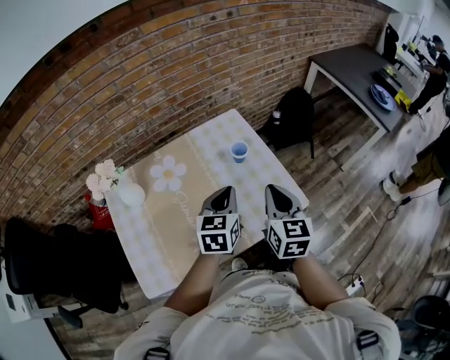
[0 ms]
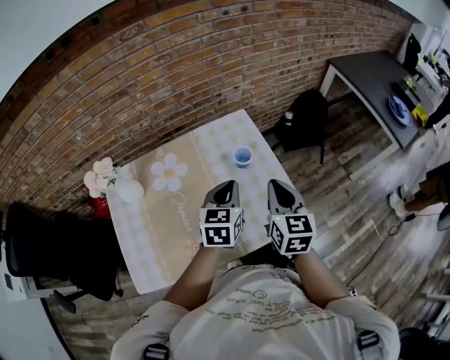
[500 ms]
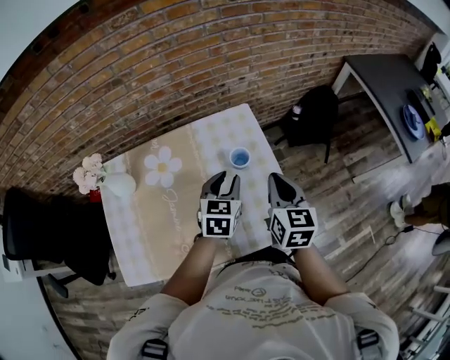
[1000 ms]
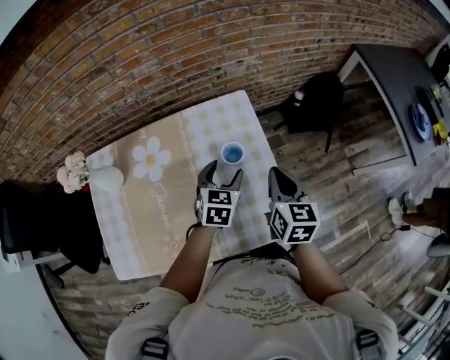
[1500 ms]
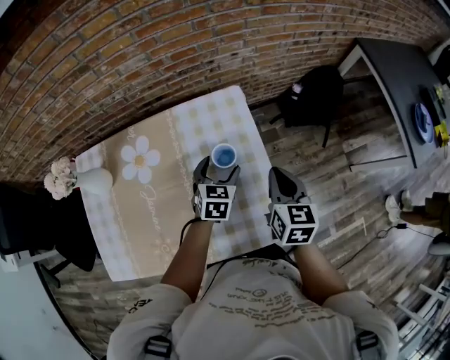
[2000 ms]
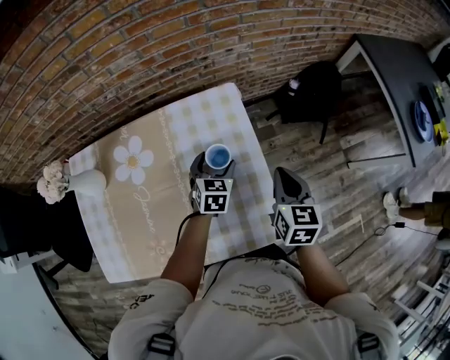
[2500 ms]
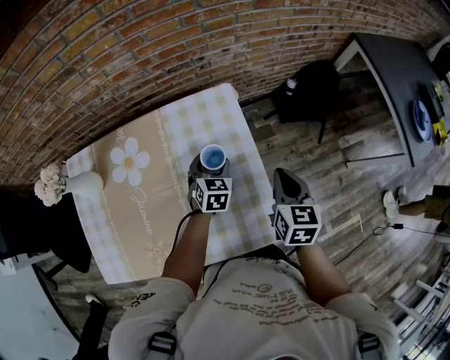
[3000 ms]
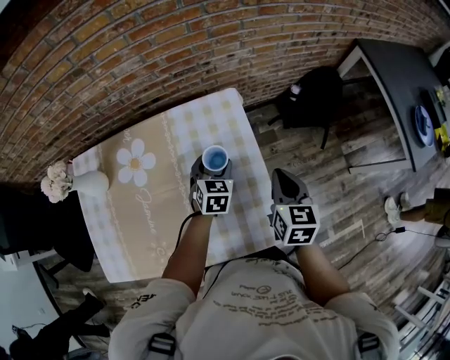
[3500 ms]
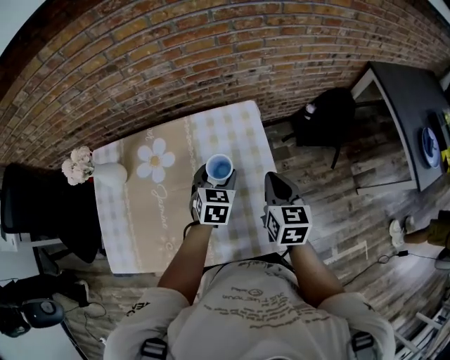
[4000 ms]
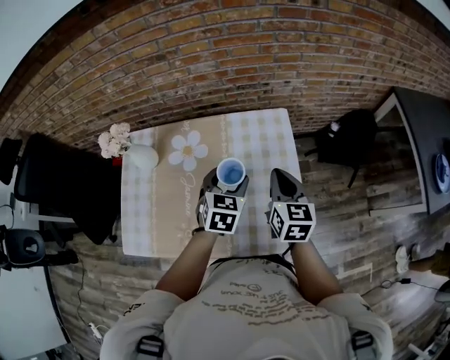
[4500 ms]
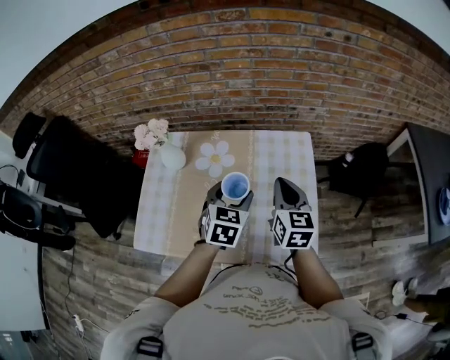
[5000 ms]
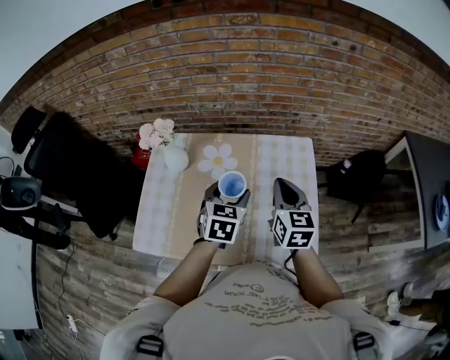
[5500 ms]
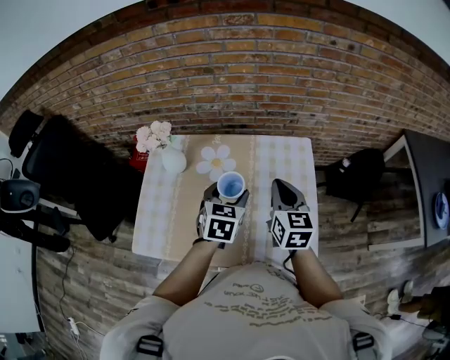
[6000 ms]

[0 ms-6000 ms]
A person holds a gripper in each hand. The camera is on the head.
0 ms to 2000 ms: The left gripper is displaced forward and downward by some 25 cm, and opens its fingers, while the right gripper travels forward, downward and to the right by approximately 25 cm.
2000 ms to 4000 ms: The left gripper ends up about 5 cm from where it was.
4000 ms to 6000 ms: The right gripper is displaced to the left and upward by some 20 cm; the left gripper goes roughly 20 cm to the left, upward and backward.

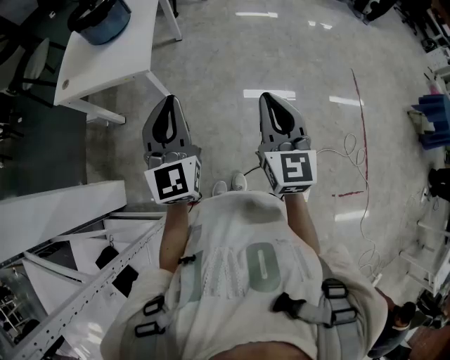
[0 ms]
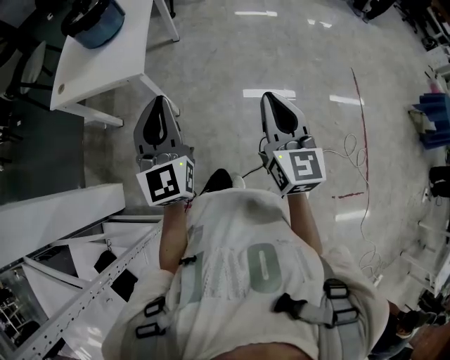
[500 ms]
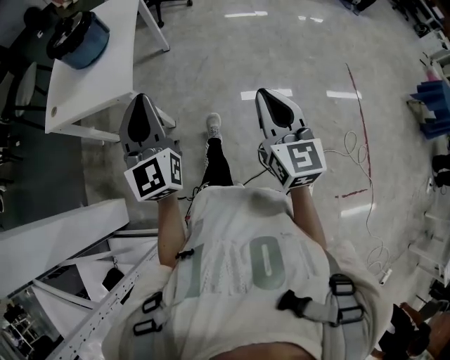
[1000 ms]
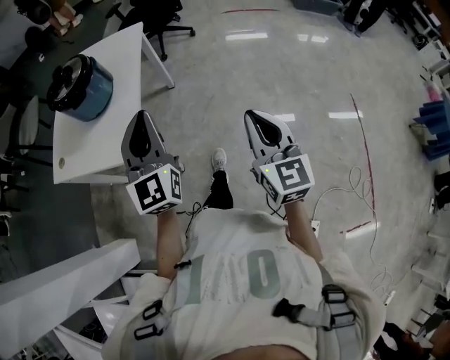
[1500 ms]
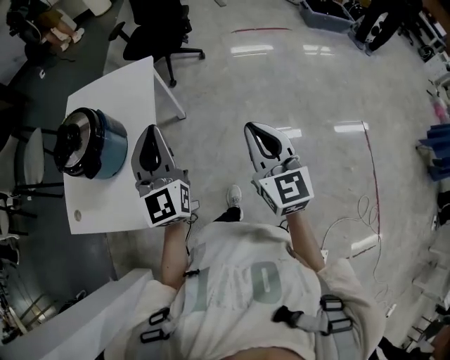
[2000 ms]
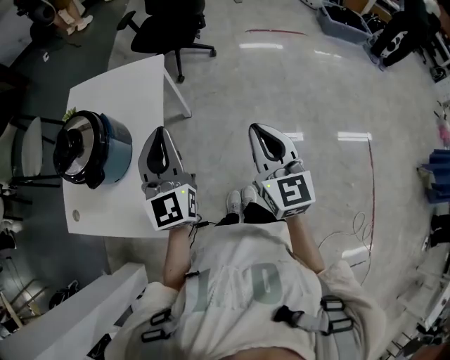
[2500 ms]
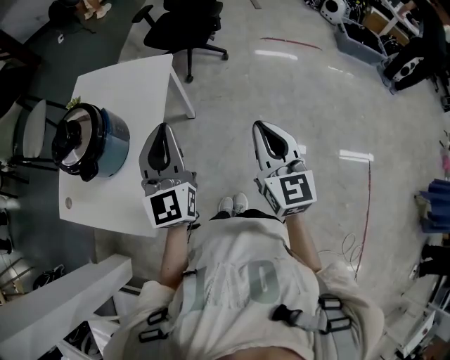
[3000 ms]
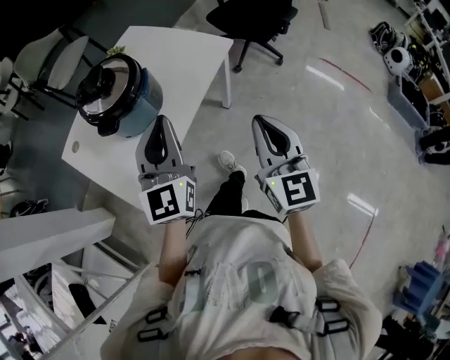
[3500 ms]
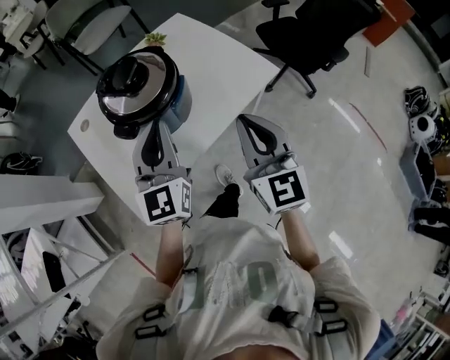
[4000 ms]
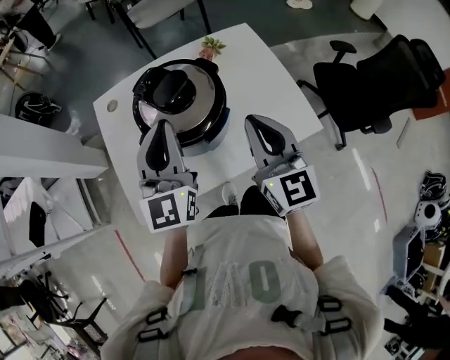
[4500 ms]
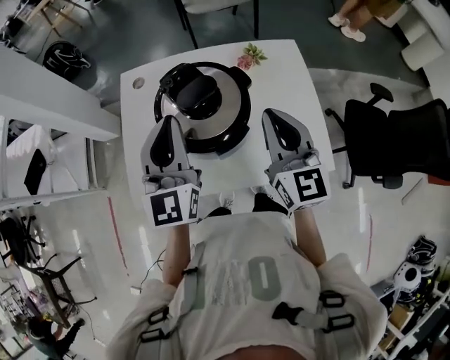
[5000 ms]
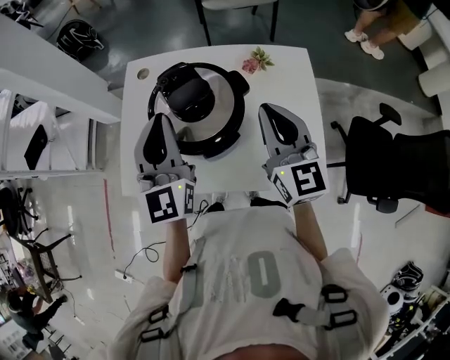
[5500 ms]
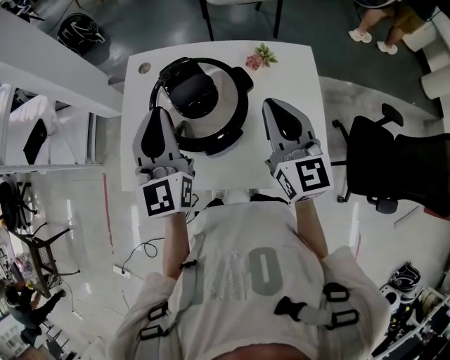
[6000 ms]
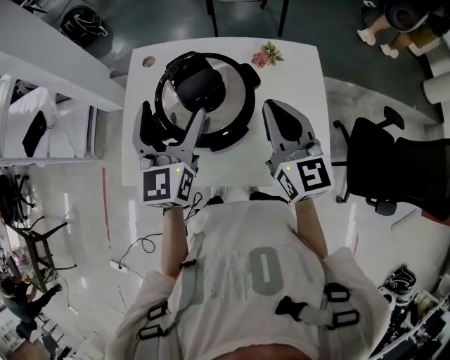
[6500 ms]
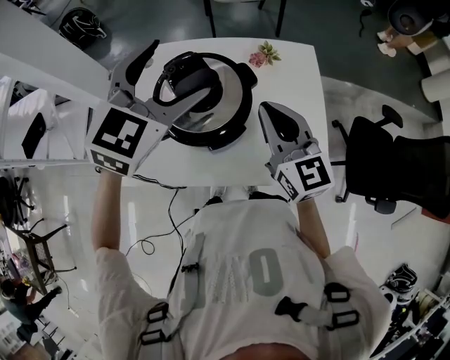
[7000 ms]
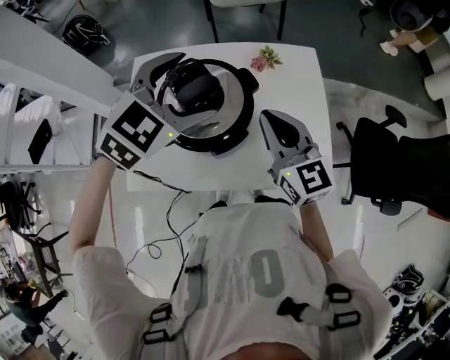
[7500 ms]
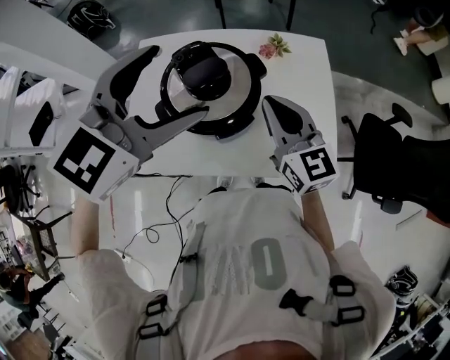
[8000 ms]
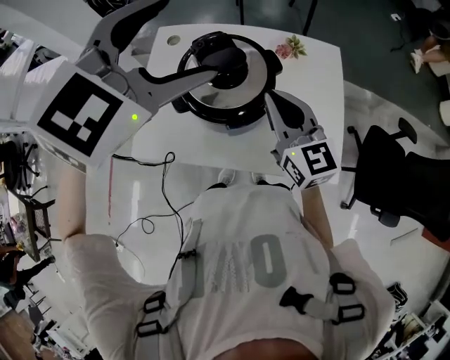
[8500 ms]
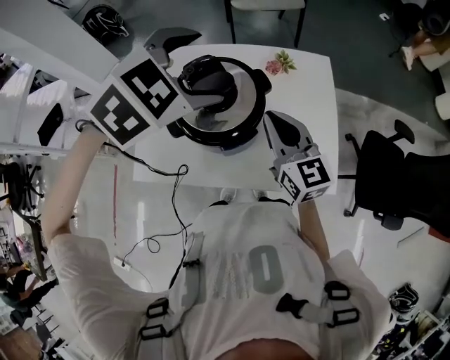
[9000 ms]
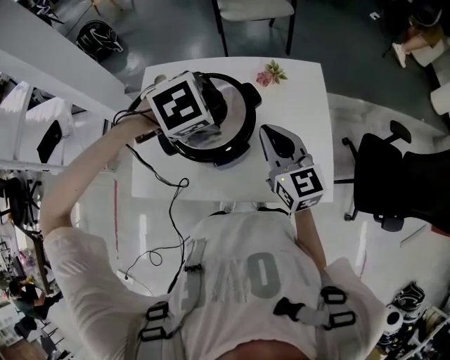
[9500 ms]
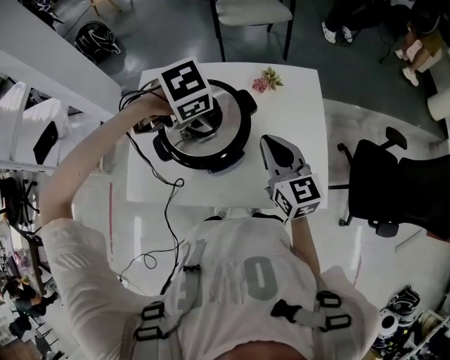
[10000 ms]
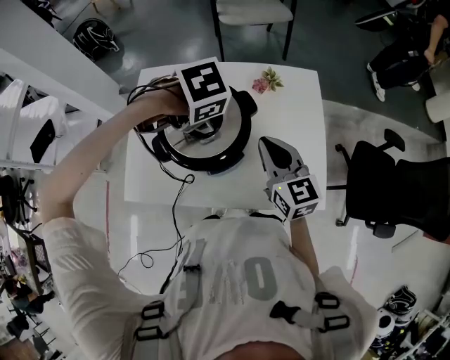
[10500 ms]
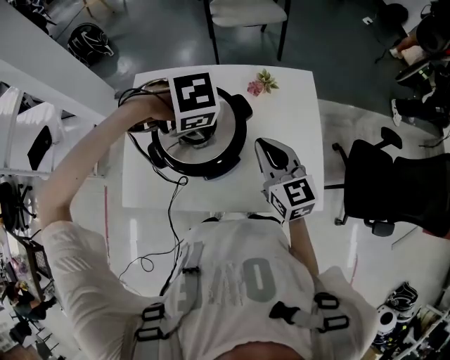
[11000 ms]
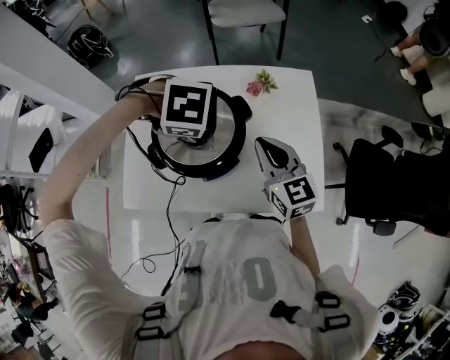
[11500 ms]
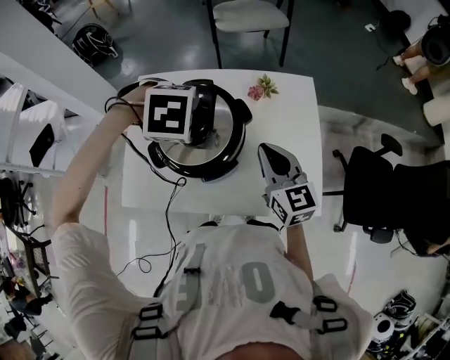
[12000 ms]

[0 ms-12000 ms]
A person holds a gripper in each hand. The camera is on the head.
0 ms to 2000 ms: Both grippers are carried forward, approximately 50 cm.
2000 ms to 4000 ms: The right gripper ends up about 35 cm from where it was, and changes its angle by some 50 degrees. The left gripper changes place by about 20 cm, and turns by about 50 degrees.
4000 ms to 6000 ms: The left gripper ends up some 15 cm from where it was, and swivels about 50 degrees. The right gripper moves roughly 30 cm, and turns by approximately 40 degrees.
6000 ms to 8000 ms: The left gripper moves up and down over some 10 cm, changing direction 2 times, turns by about 50 degrees, and opens up.
8000 ms to 10000 ms: The right gripper changes place by roughly 5 cm. The left gripper goes some 20 cm downward, and angles its fingers downward, by some 60 degrees.
10000 ms to 12000 ms: The left gripper changes its angle by about 30 degrees.

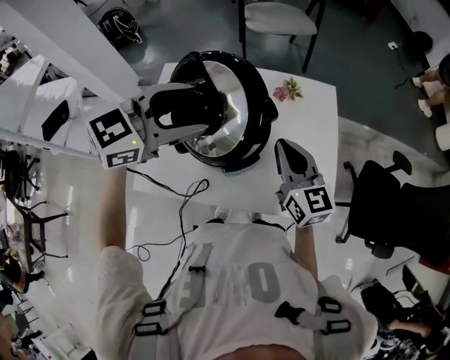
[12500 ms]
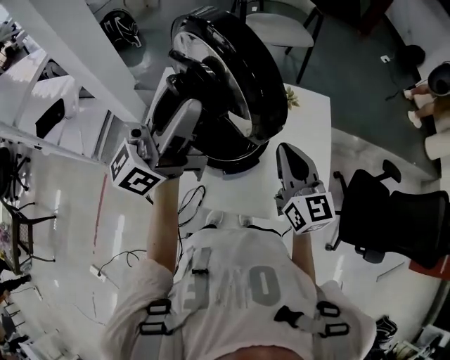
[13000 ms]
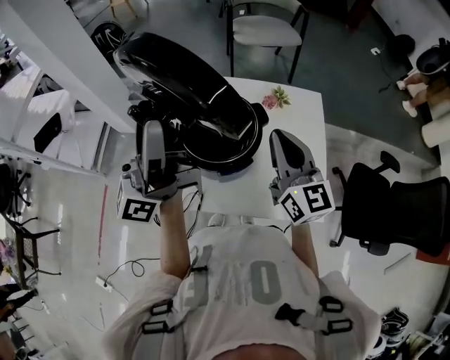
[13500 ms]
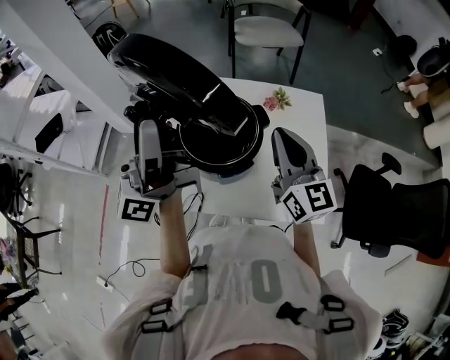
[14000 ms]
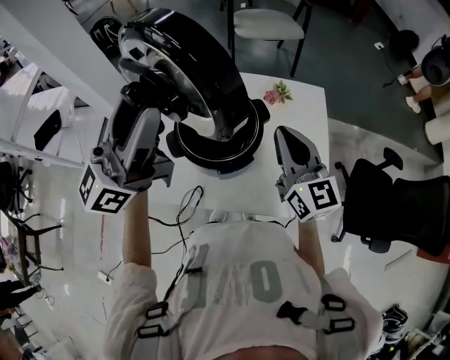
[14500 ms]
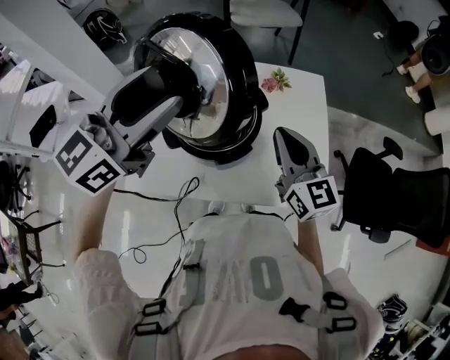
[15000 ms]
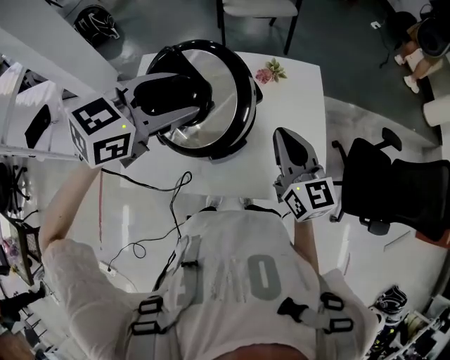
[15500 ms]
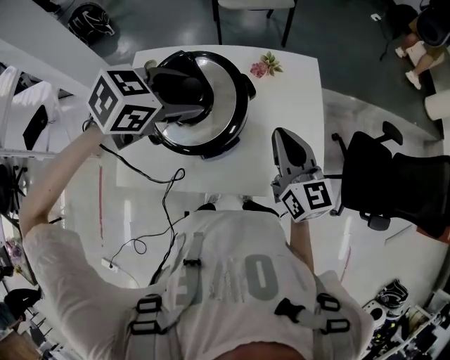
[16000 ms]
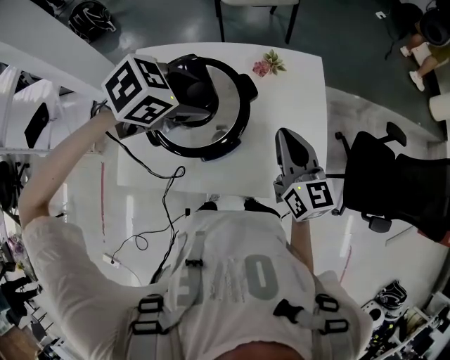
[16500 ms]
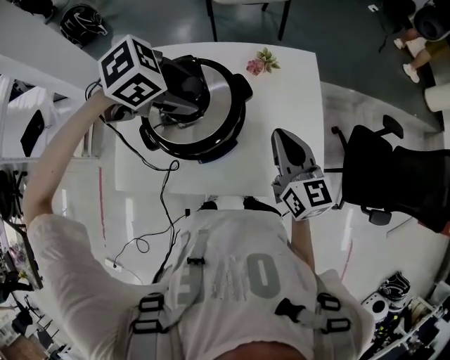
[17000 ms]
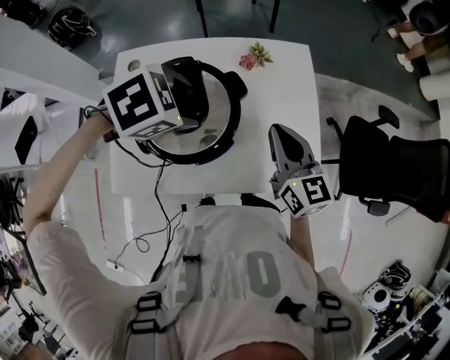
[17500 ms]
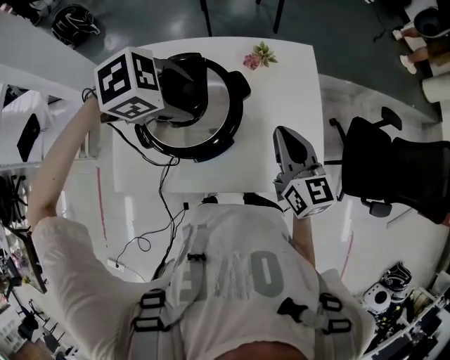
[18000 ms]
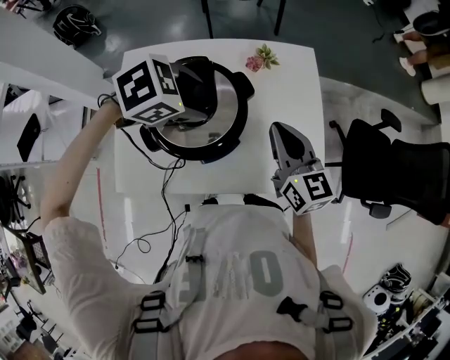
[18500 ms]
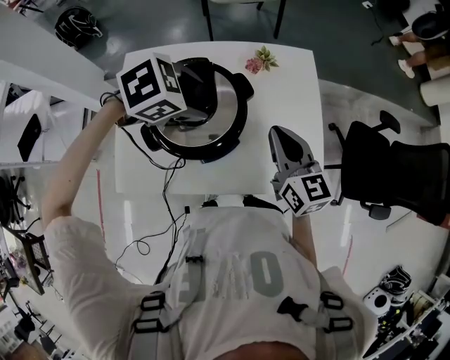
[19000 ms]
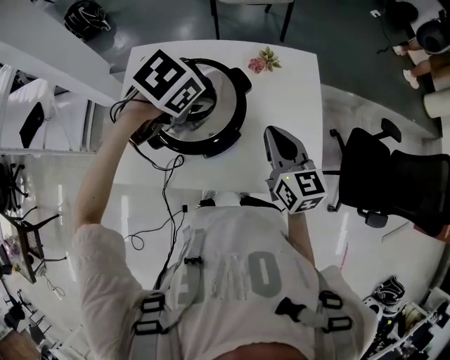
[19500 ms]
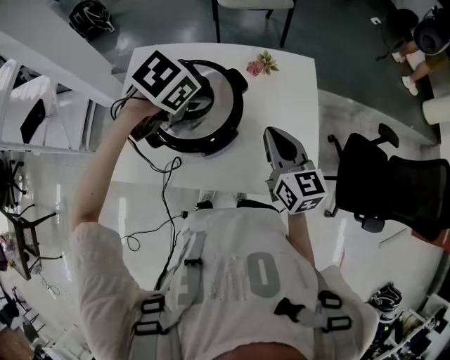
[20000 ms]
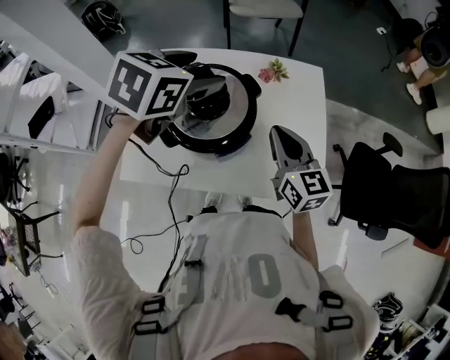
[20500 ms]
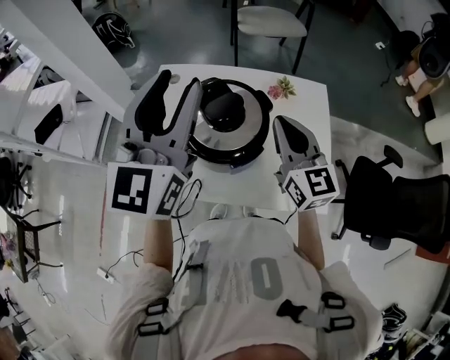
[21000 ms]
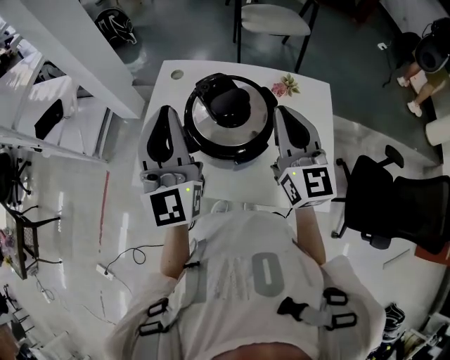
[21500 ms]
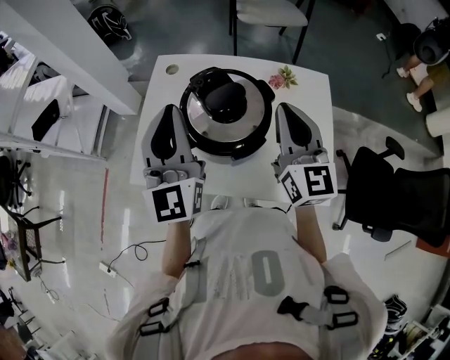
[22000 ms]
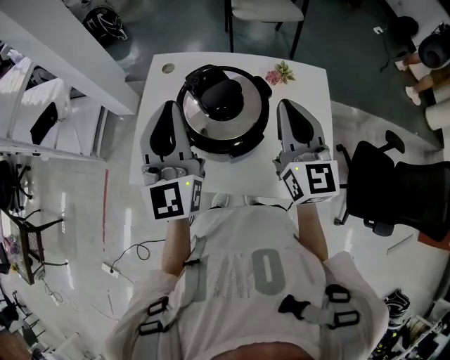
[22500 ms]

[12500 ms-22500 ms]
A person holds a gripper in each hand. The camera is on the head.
12500 ms to 14500 ms: The left gripper travels upward and to the left by about 15 cm, and tilts its fingers roughly 50 degrees upward. Meanwhile the right gripper travels upward by some 5 cm.
14500 ms to 16500 ms: The left gripper shifts some 25 cm downward, forward and to the right, and points its fingers approximately 80 degrees further downward; the right gripper heads downward and to the right, covering approximately 10 cm.
16500 ms to 18500 ms: The grippers move only a little.
18500 ms to 20500 ms: The left gripper moves upward, some 10 cm, and swivels roughly 50 degrees.
20500 ms to 22500 ms: The right gripper goes some 10 cm upward, while the left gripper heads to the left and backward, covering roughly 15 cm, points its fingers some 50 degrees further upward, and closes up.
